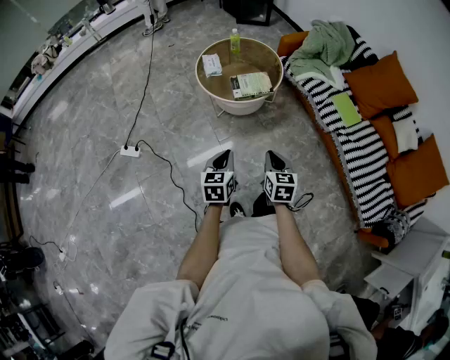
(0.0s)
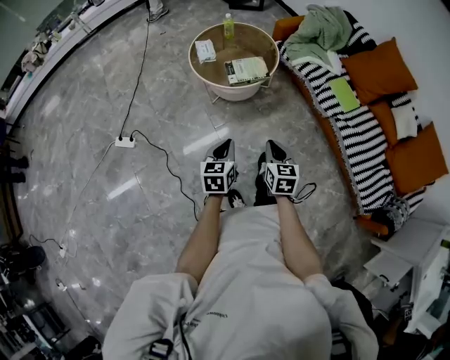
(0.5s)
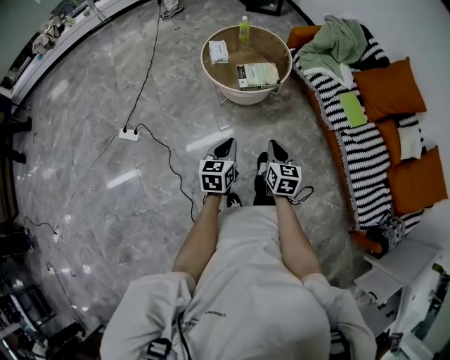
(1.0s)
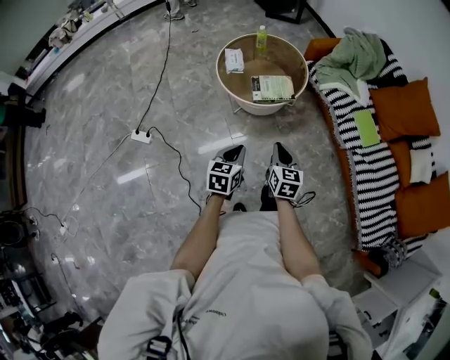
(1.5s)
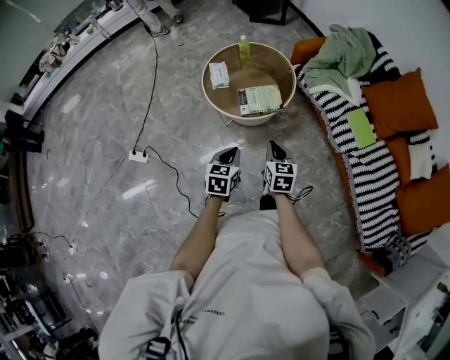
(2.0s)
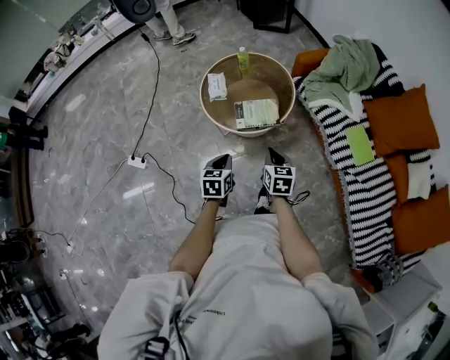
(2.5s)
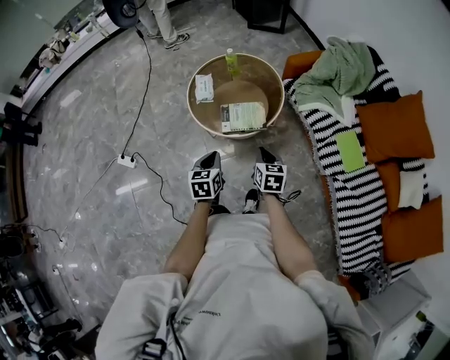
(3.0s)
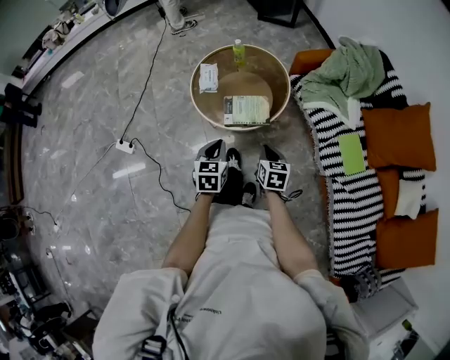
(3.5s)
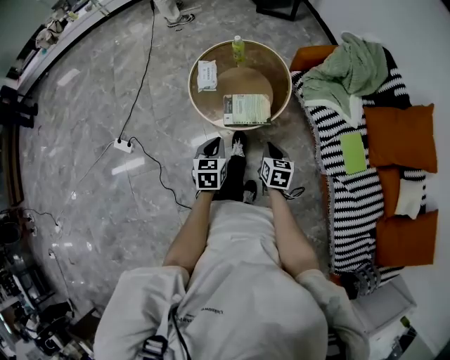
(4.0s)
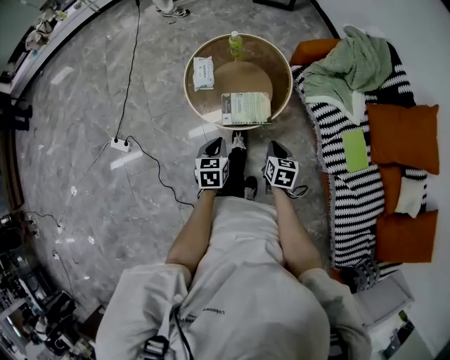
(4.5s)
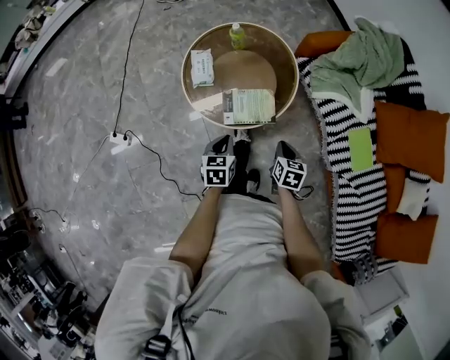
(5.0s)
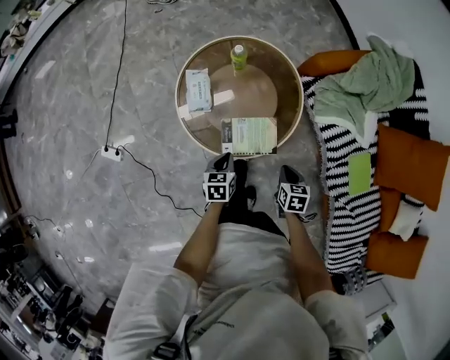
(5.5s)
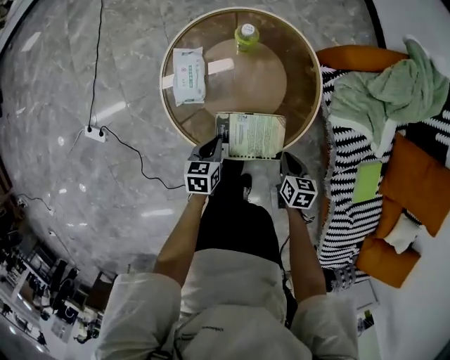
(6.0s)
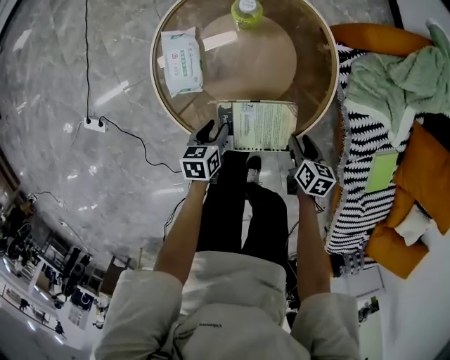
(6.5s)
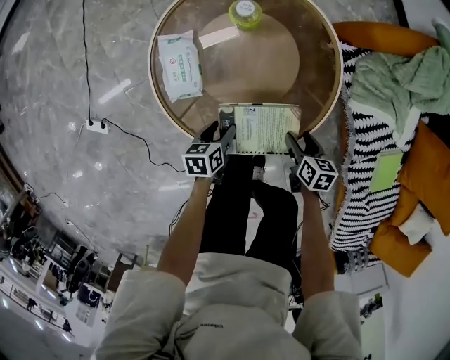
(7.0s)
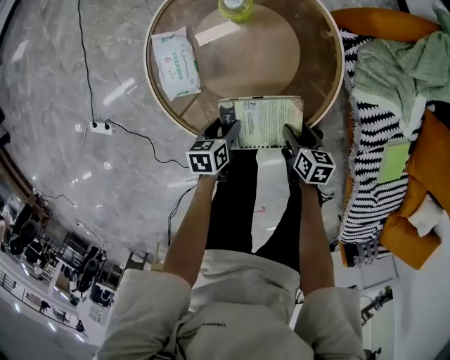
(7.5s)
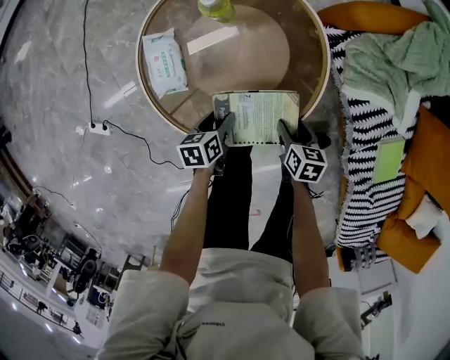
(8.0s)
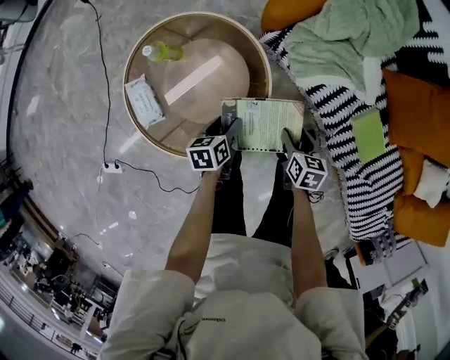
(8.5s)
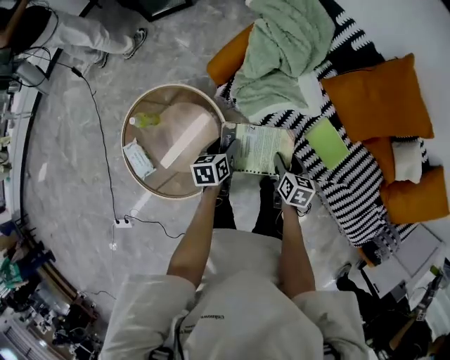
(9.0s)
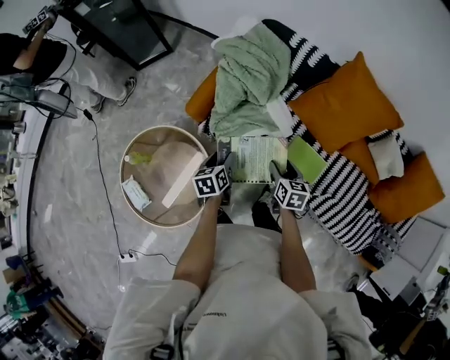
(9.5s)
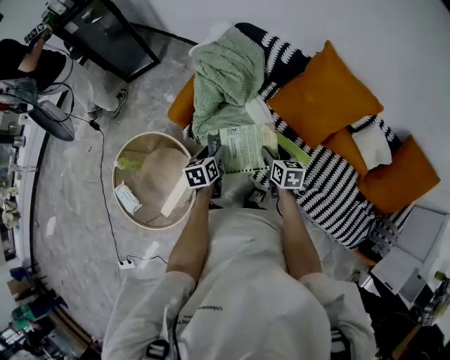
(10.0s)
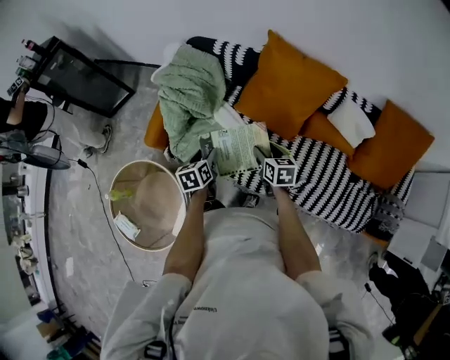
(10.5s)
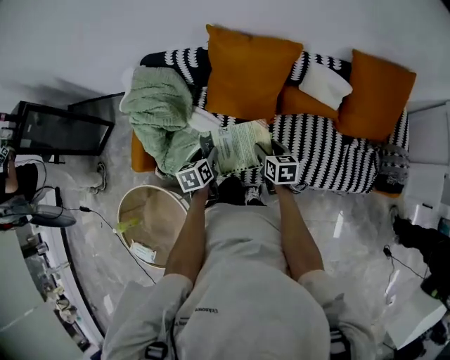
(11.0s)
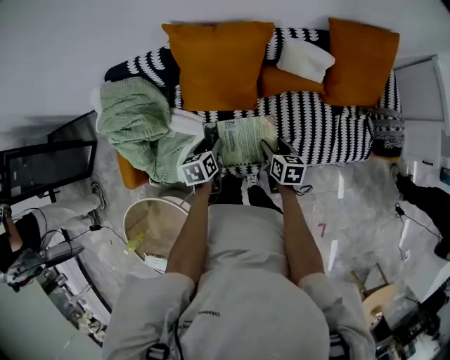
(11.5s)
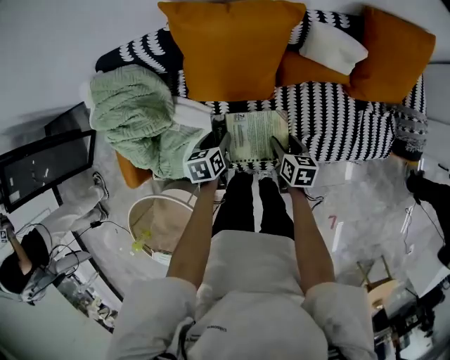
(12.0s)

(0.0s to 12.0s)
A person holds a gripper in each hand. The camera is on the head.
0.0s - 2.0s: Both grippers travel together forward, roughly 20 cm.
2.0s - 4.0s: The right gripper goes roughly 15 cm forward, to the right and downward. The left gripper travels forward by some 15 cm.
4.0s - 6.0s: The grippers both shift downward and forward by about 35 cm. The left gripper rotates approximately 20 degrees.
6.0s - 8.0s: Both grippers travel together downward, about 5 cm. The left gripper opens; the right gripper opens its fingers.
8.0s - 10.0s: The two grippers travel together, some 50 cm. The right gripper turns by some 40 degrees. The left gripper rotates about 40 degrees.
10.0s - 12.0s: The right gripper ends up about 30 cm from where it was, and turns by some 40 degrees, while the left gripper shifts by roughly 35 cm, and turns by approximately 40 degrees.

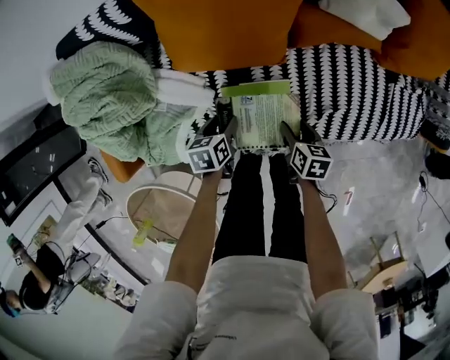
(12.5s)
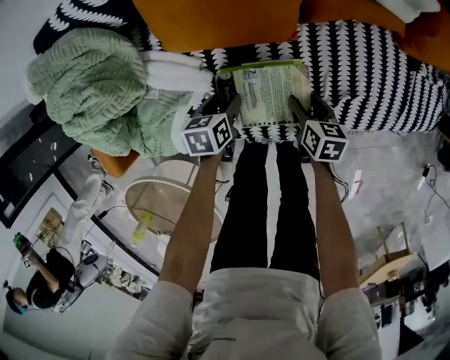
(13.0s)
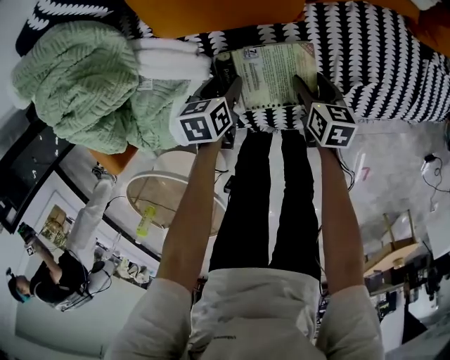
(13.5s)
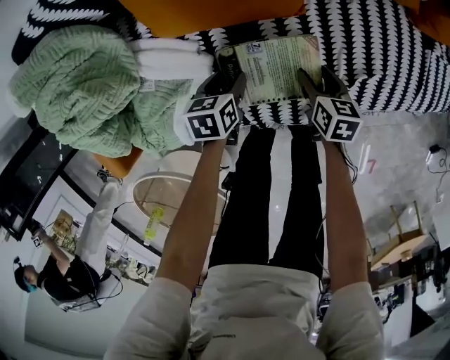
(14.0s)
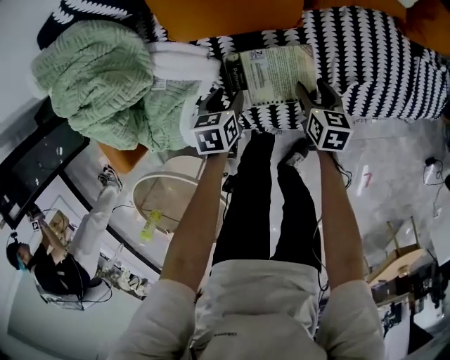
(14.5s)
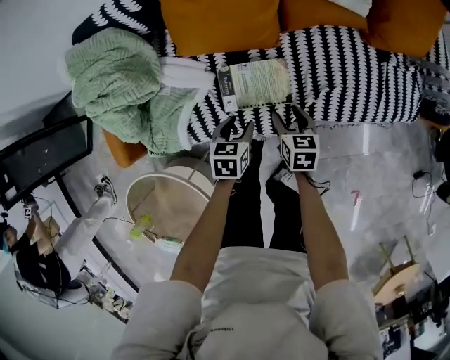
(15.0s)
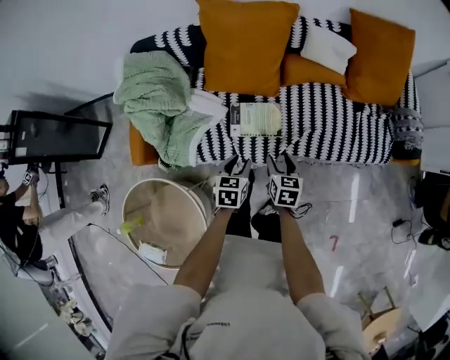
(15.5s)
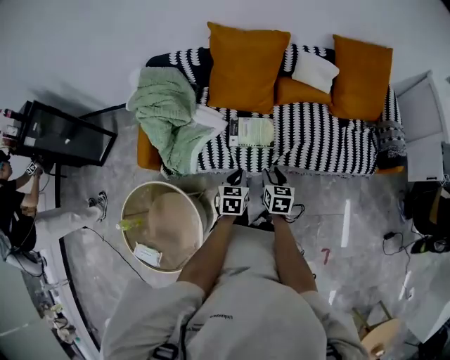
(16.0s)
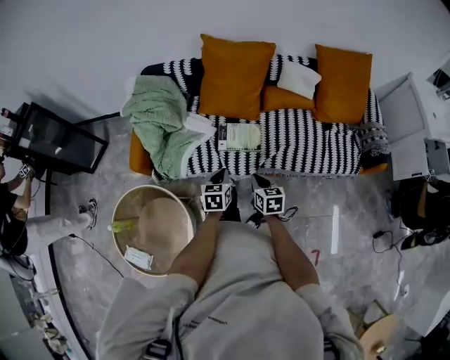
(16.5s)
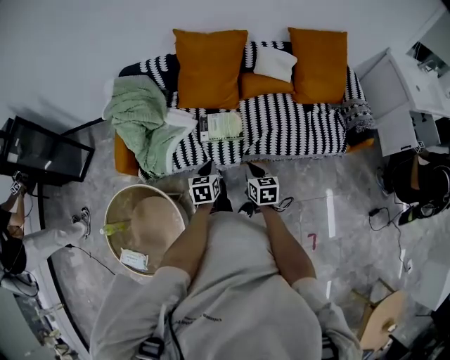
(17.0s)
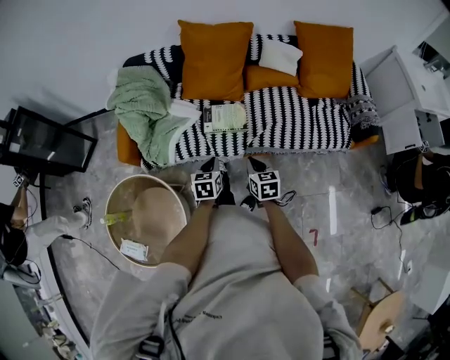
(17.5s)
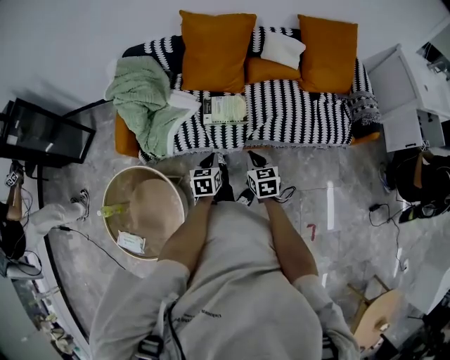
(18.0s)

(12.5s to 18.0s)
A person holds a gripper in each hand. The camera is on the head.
14.5s - 16.0s: The right gripper shifts approximately 35 cm upward and backward, while the left gripper goes about 40 cm upward, backward and to the right, turns by approximately 20 degrees, and closes its fingers.
16.0s - 18.0s: The two grippers go roughly 10 cm backward. The right gripper closes.

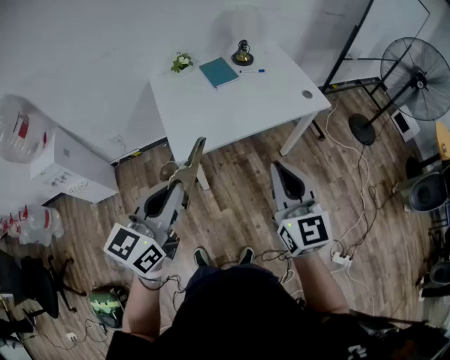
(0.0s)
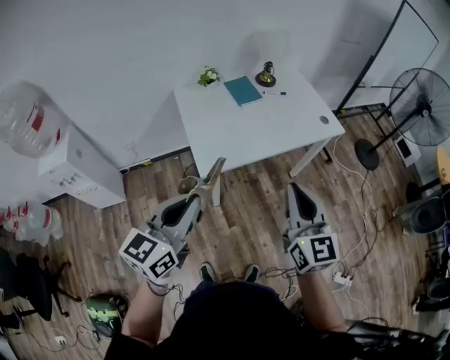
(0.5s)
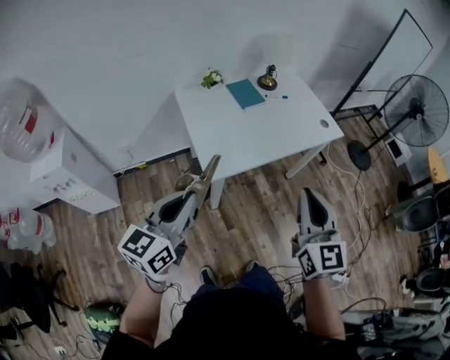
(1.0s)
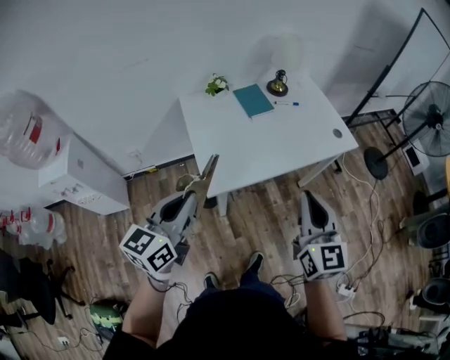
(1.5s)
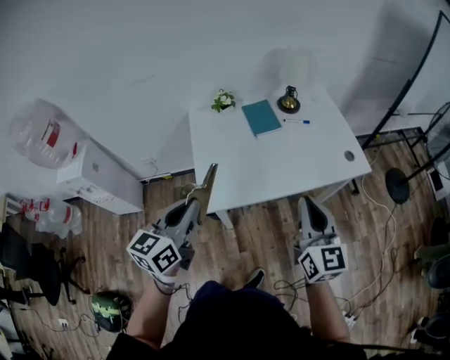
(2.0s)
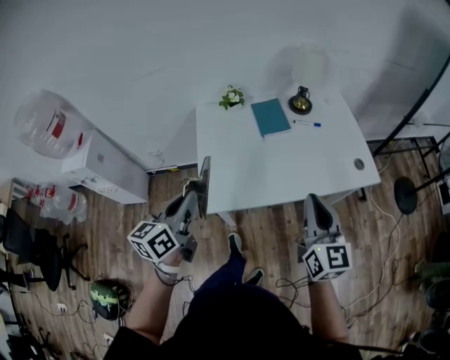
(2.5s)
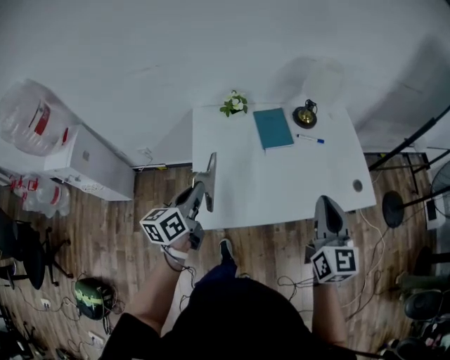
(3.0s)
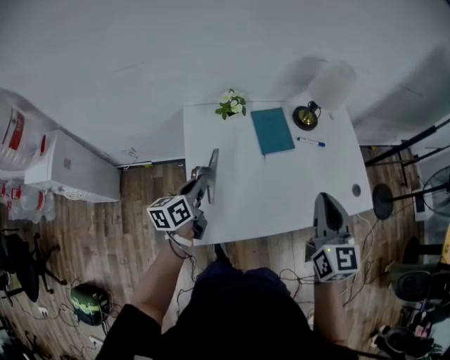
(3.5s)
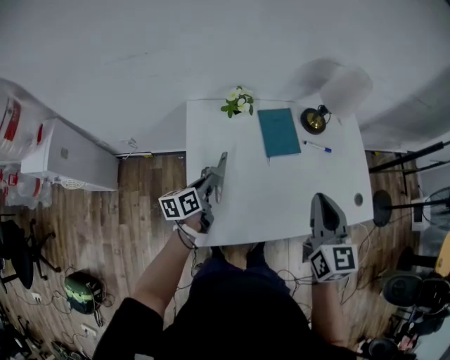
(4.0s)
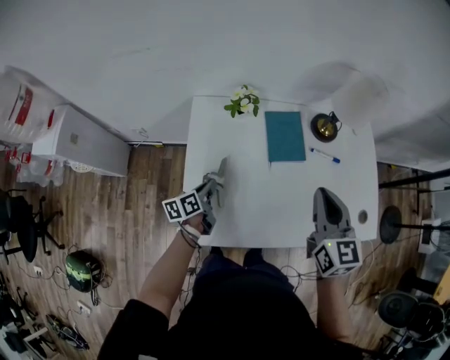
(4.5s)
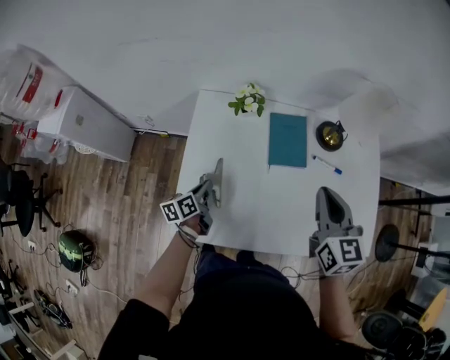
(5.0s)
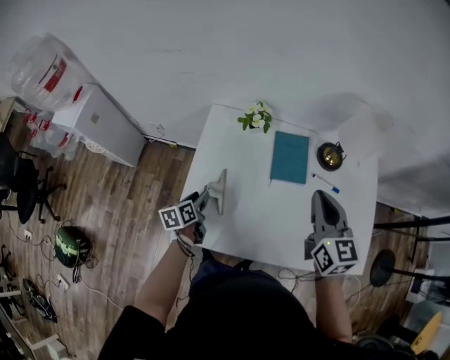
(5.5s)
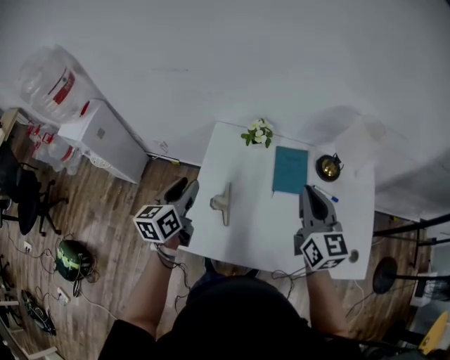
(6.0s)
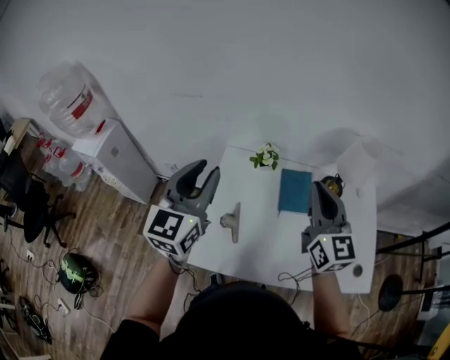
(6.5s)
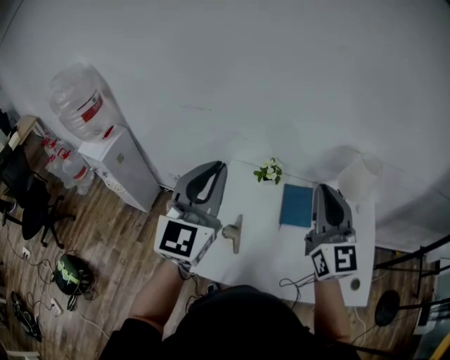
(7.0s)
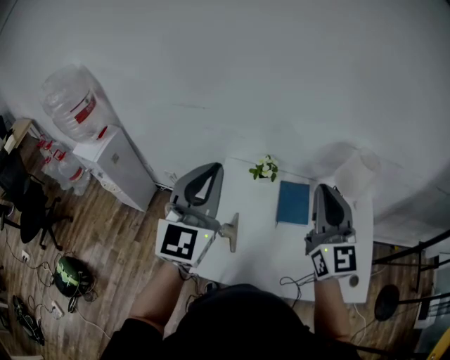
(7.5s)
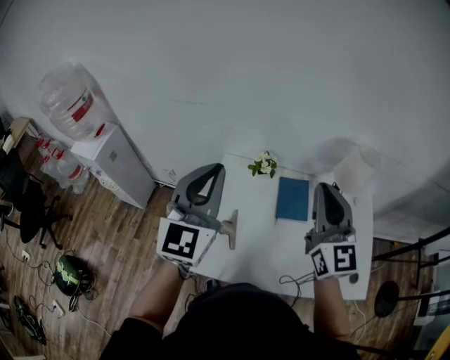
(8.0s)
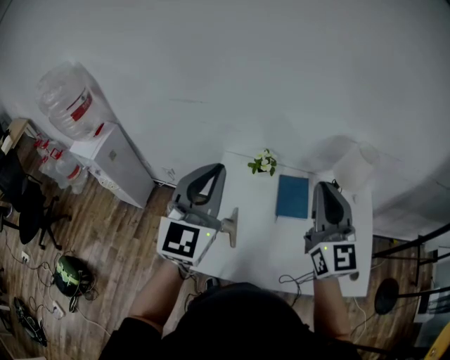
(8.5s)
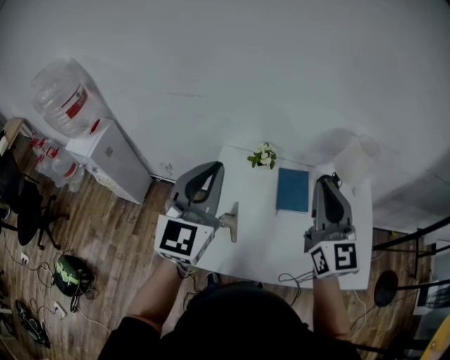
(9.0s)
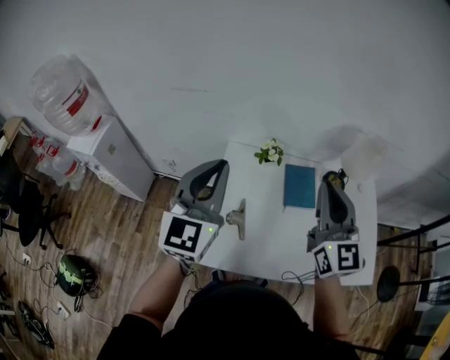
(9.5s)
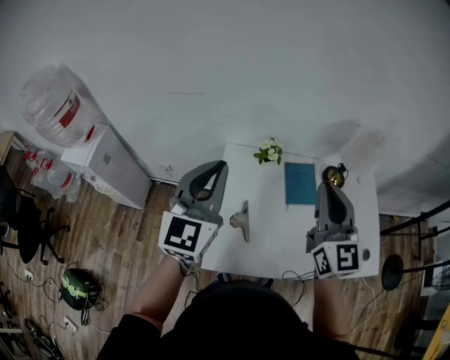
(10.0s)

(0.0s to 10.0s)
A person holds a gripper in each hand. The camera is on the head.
0.0s - 2.0s: Both grippers move forward, approximately 20 cm.
2.0s - 4.0s: The right gripper heads forward, covering about 30 cm, while the left gripper moves forward and downward, approximately 40 cm, and swivels approximately 40 degrees.
4.0s - 6.0s: The left gripper shifts some 15 cm upward, swivels about 30 degrees, and opens up; the right gripper ends up roughly 10 cm from where it was, and rotates about 20 degrees.
6.0s - 8.0s: The right gripper shifts approximately 15 cm upward, and rotates about 20 degrees. The left gripper is displaced upward by roughly 25 cm, swivels about 40 degrees, and closes up.
8.0s - 10.0s: Both grippers move to the left, some 5 cm.
